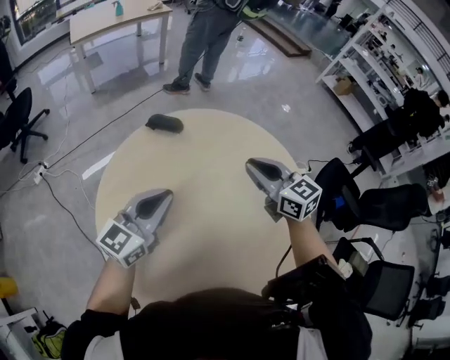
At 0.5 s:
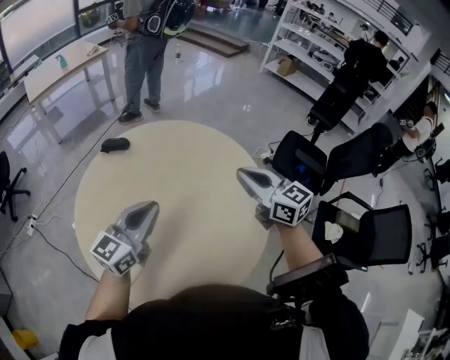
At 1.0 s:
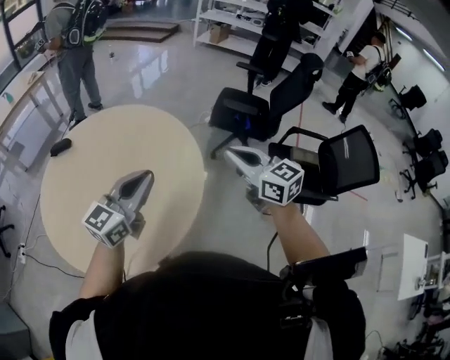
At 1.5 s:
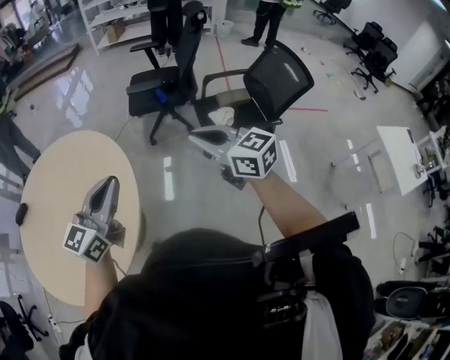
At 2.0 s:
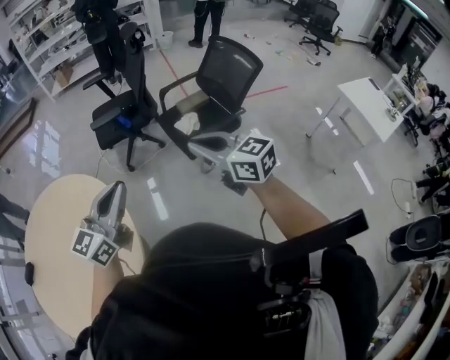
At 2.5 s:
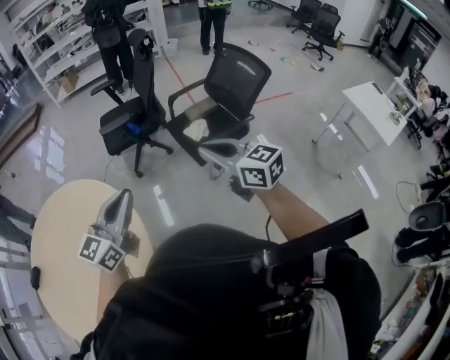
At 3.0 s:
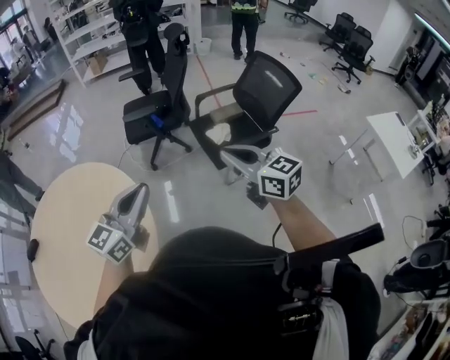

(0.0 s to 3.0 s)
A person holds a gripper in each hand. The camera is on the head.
0.0 s - 1.5 s: The two grippers travel together, some 70 cm. The right gripper swivels approximately 50 degrees; the left gripper changes its angle by about 40 degrees.
1.5 s - 3.0 s: The right gripper moves to the right, approximately 5 cm.

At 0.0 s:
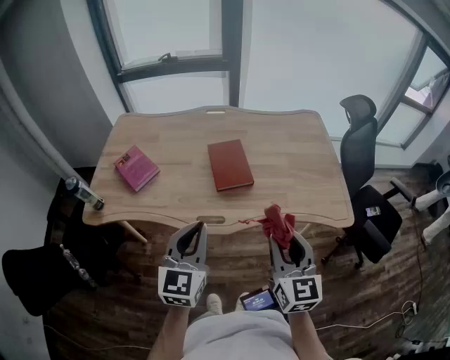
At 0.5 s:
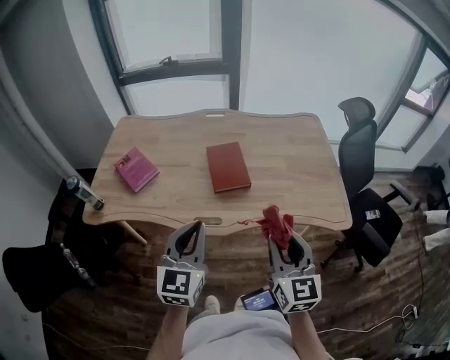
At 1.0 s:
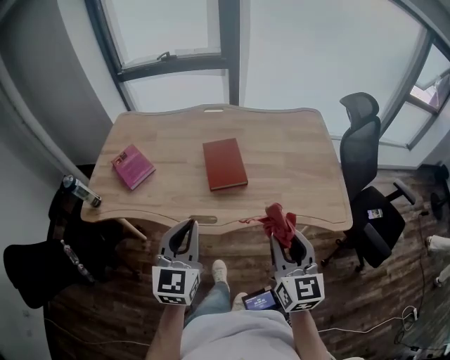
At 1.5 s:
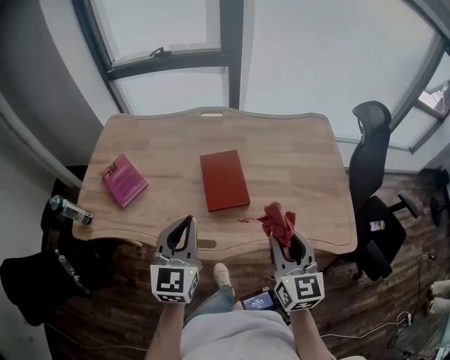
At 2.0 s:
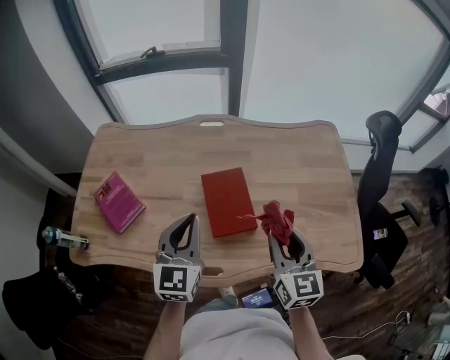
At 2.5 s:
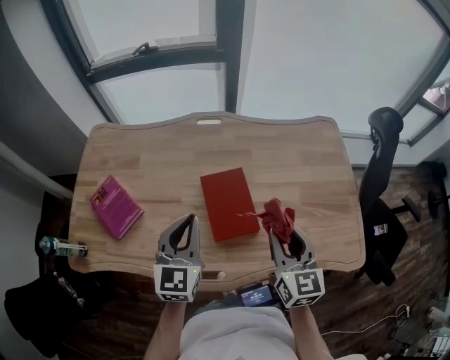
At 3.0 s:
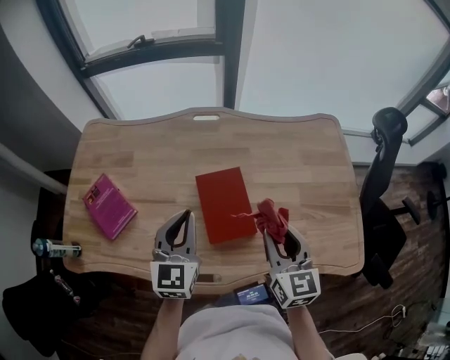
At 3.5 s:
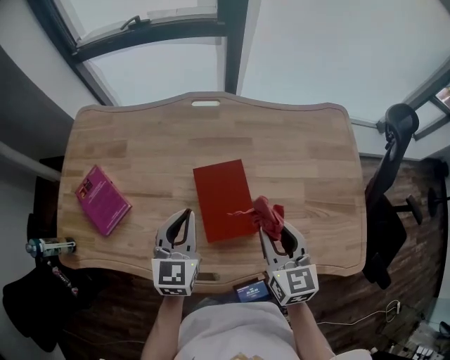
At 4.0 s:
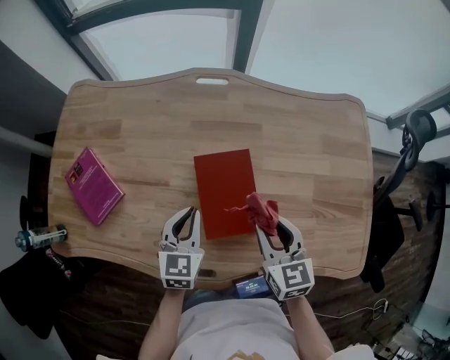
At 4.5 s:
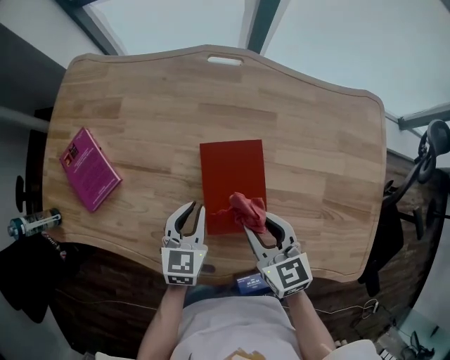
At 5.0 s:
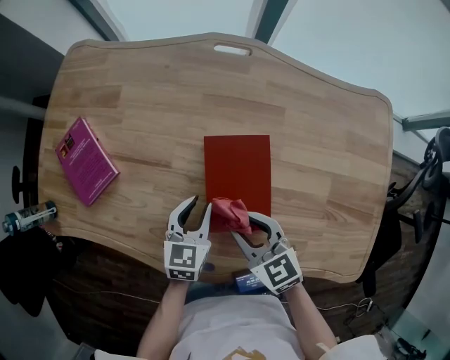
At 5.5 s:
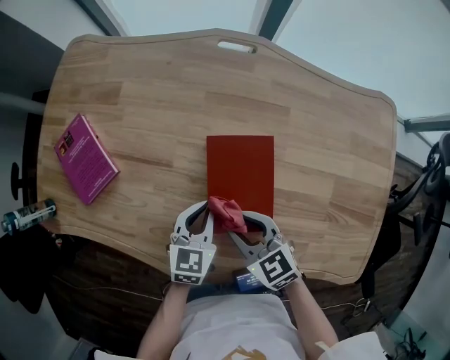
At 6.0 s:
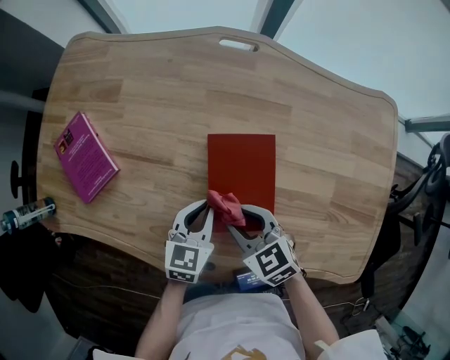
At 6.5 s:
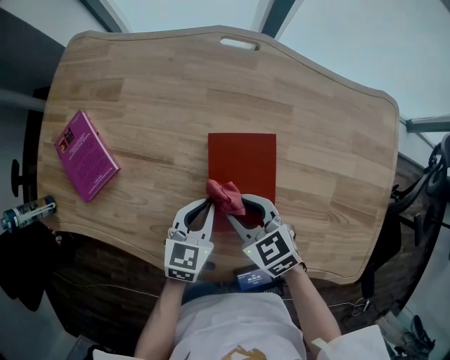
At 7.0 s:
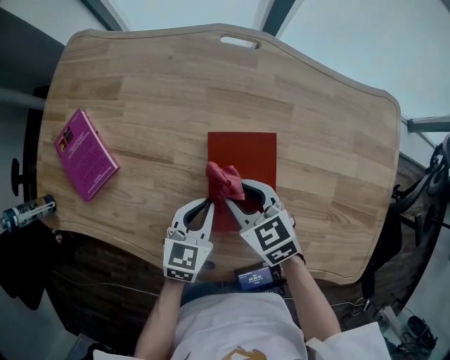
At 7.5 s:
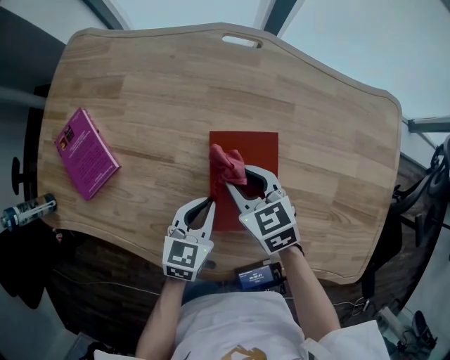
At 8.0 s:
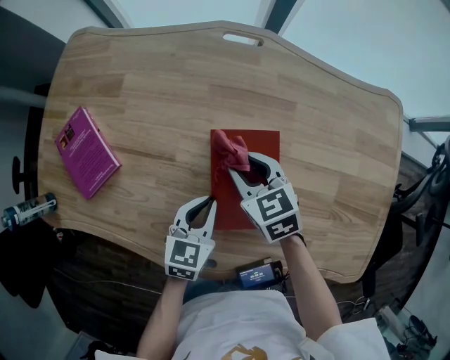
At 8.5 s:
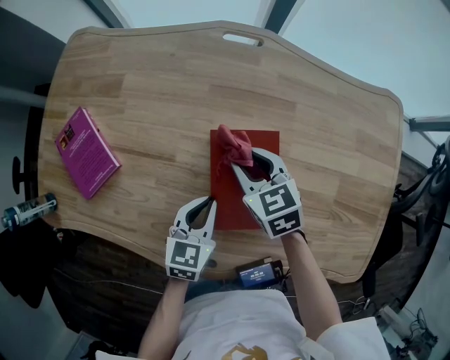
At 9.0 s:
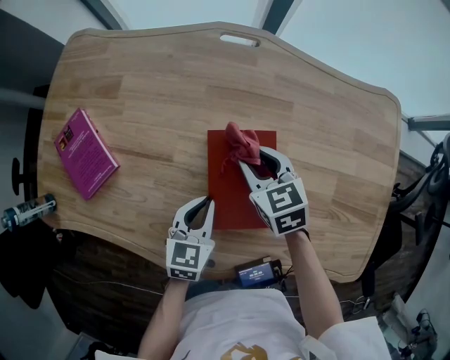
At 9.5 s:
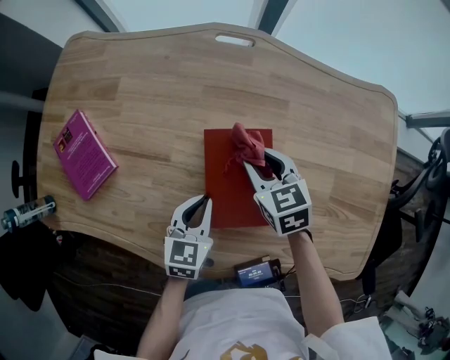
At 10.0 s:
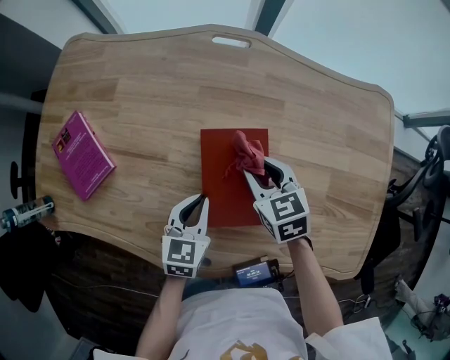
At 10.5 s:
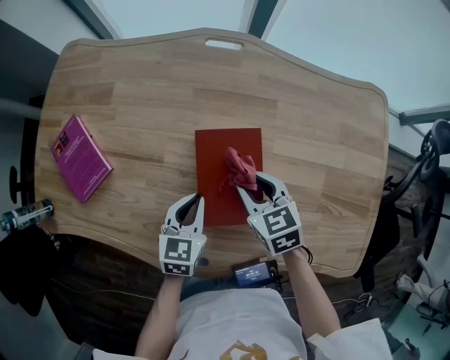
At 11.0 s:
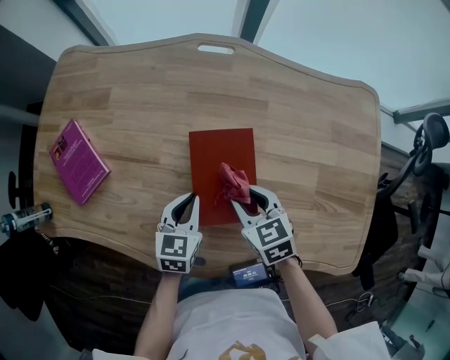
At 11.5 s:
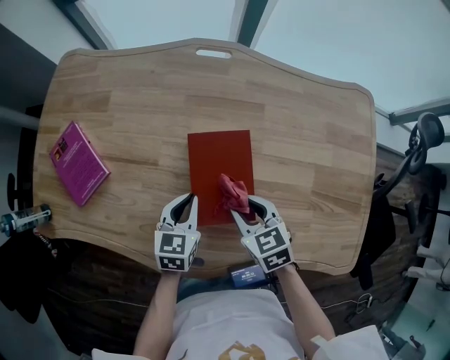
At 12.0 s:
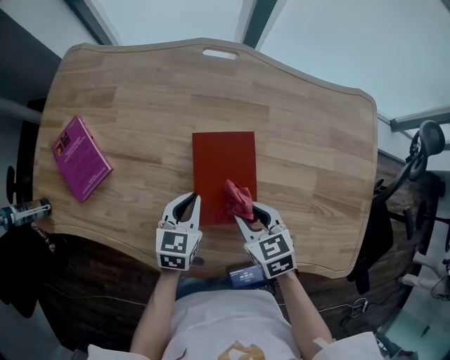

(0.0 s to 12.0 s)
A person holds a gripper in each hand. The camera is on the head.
0.0 s - 2.0 s: Both grippers move forward, some 25 cm.
2.0 s - 4.0 s: The two grippers go approximately 20 cm downward and forward. The right gripper changes its angle by about 20 degrees, while the left gripper changes its angle by about 20 degrees.
4.0 s - 6.0 s: The right gripper is displaced to the left and downward by approximately 15 cm, and swivels some 40 degrees. Meanwhile the left gripper shifts approximately 5 cm downward, and opens, then closes once more.
6.0 s - 8.0 s: The right gripper is displaced forward by about 10 cm.
8.0 s - 10.0 s: The right gripper heads to the right, covering some 5 cm.
10.0 s - 12.0 s: The right gripper shifts approximately 10 cm backward.

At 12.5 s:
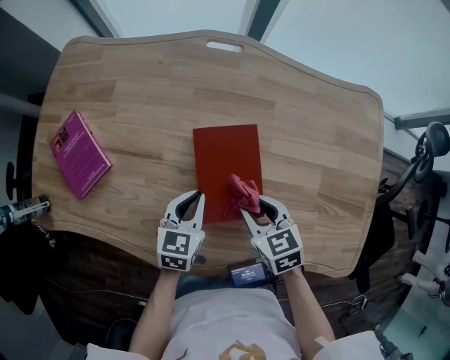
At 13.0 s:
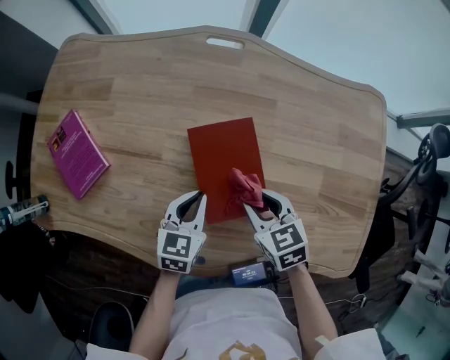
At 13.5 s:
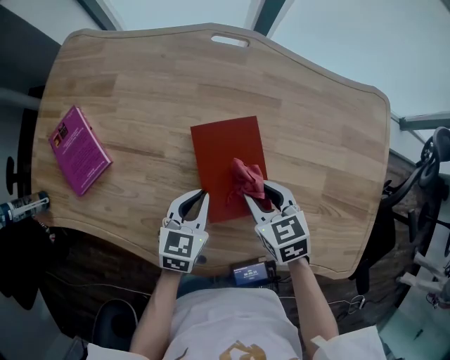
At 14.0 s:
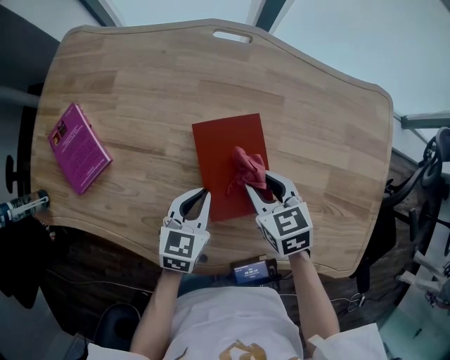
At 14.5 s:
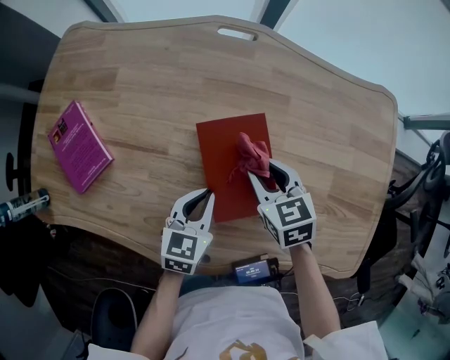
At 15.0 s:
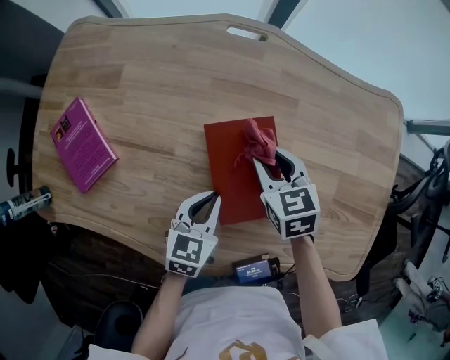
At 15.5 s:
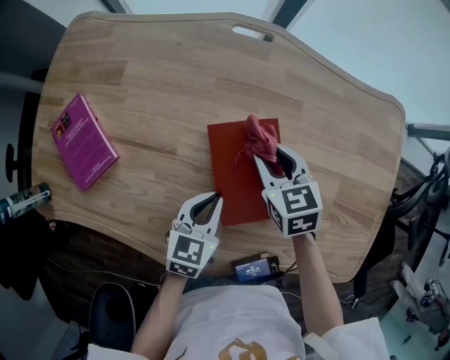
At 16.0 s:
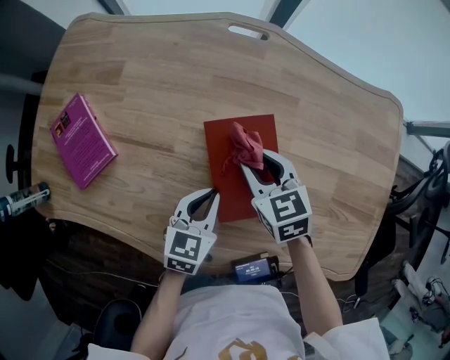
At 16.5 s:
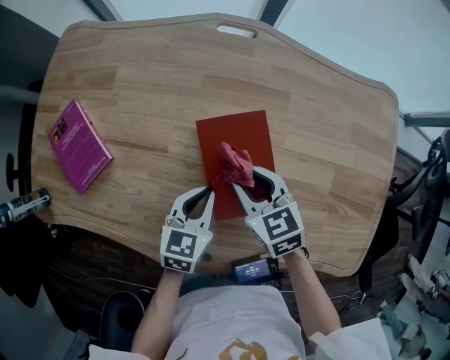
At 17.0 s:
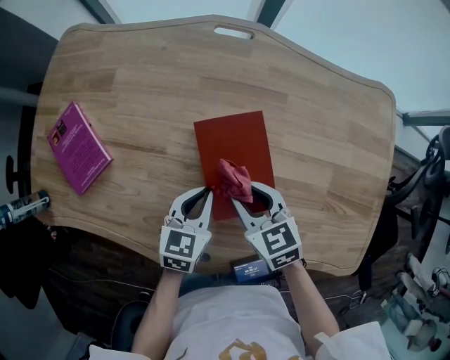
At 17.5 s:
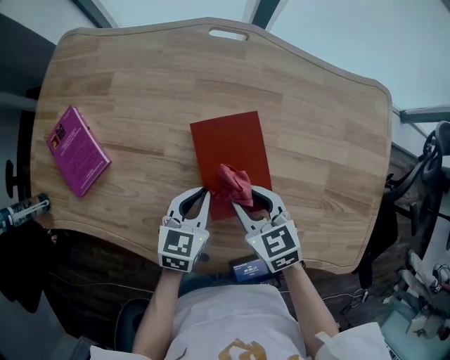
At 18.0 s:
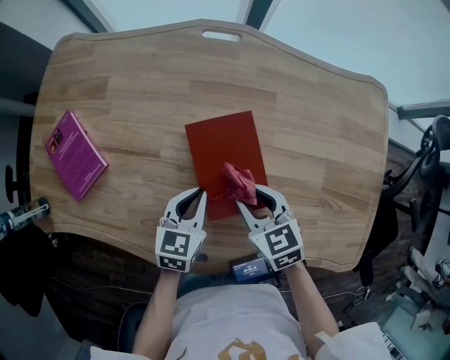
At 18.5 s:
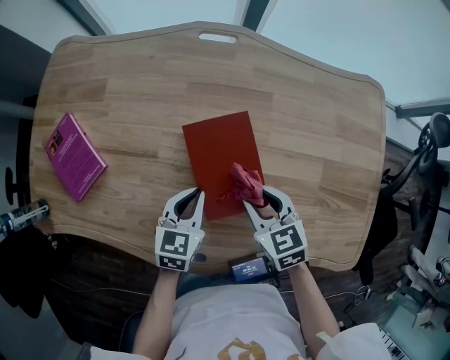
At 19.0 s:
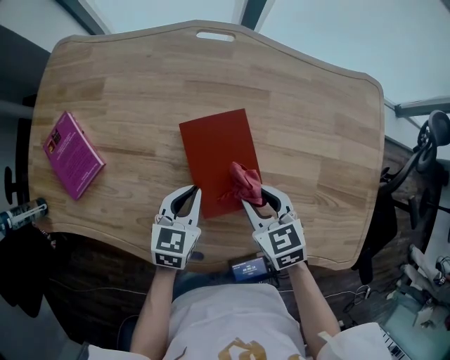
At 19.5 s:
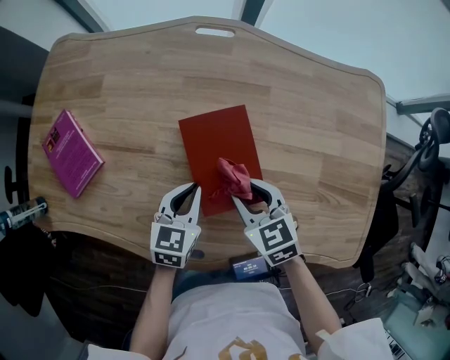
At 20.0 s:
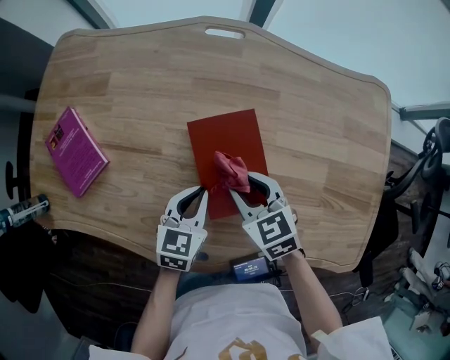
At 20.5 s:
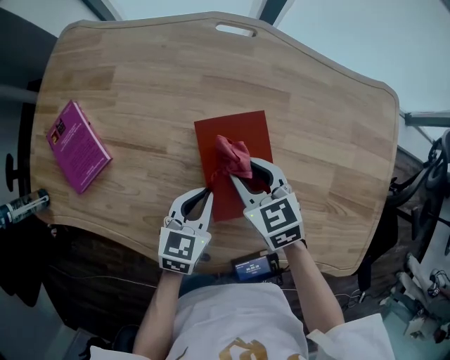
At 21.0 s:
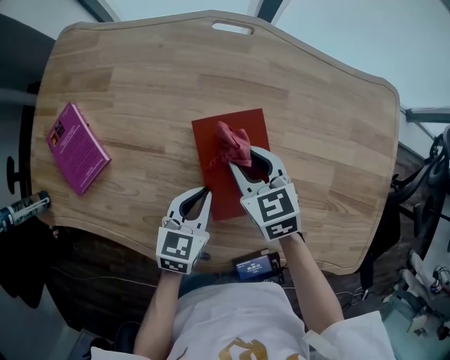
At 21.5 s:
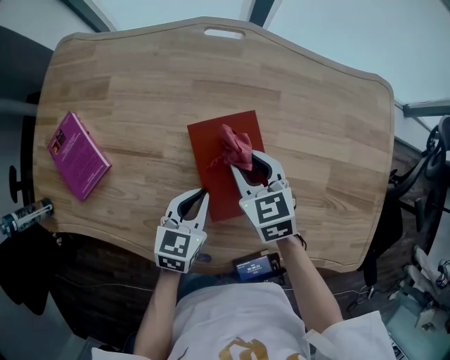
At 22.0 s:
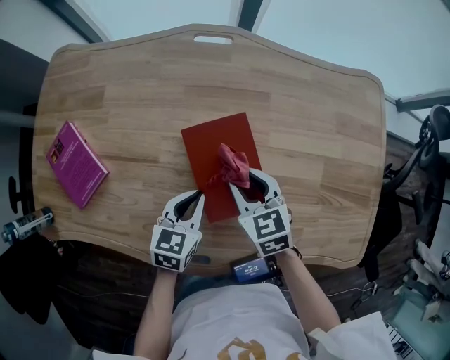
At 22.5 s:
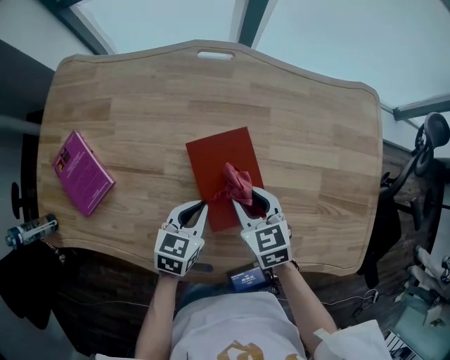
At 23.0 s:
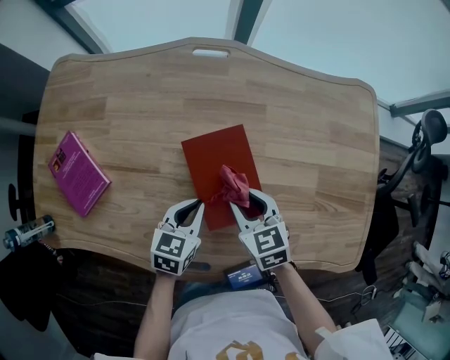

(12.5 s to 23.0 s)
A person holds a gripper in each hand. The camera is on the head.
12.5 s - 14.5 s: The right gripper shifts some 10 cm forward.
14.5 s - 16.5 s: The right gripper ends up about 5 cm from where it was.
16.5 s - 19.0 s: The right gripper travels to the right and backward by about 10 cm.
19.0 s - 21.0 s: The right gripper heads forward and to the left, covering some 10 cm.
21.0 s - 23.0 s: The right gripper goes roughly 5 cm backward.

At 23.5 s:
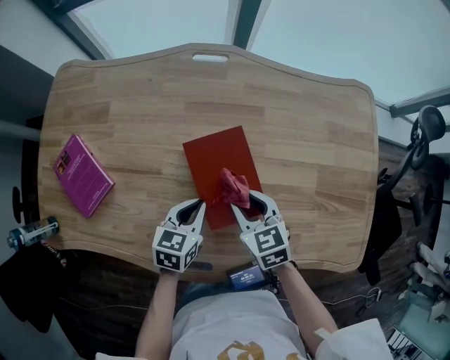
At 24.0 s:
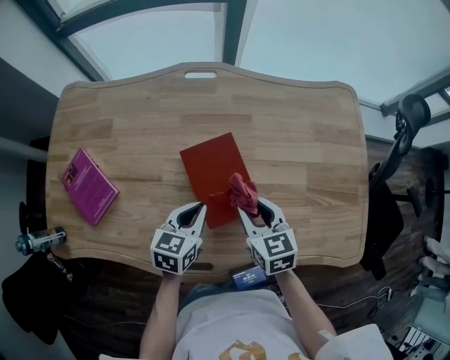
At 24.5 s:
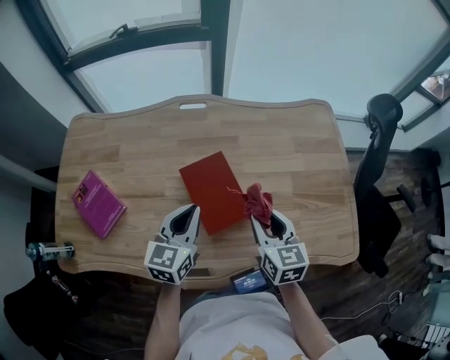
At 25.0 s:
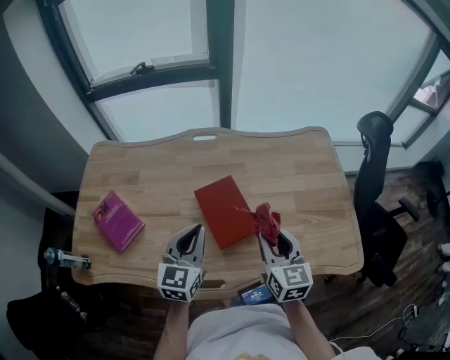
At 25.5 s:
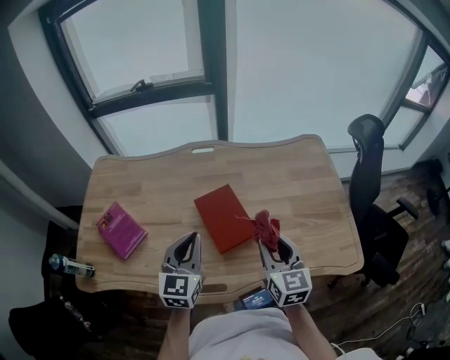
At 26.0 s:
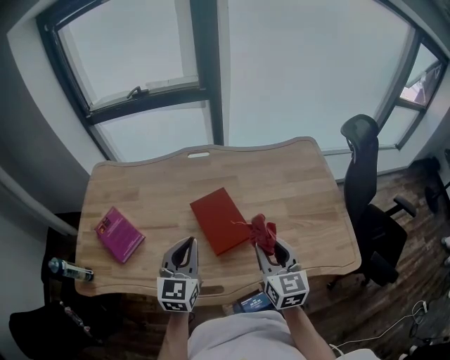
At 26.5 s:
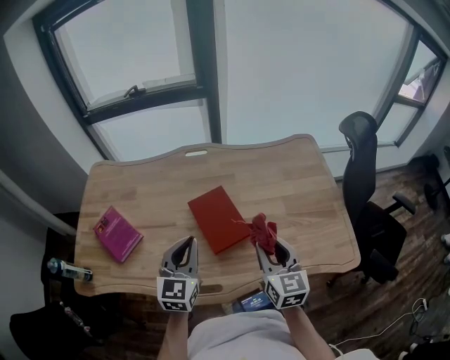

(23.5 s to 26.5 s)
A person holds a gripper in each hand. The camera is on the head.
23.5 s - 25.0 s: The left gripper goes some 20 cm upward, and changes its angle by roughly 30 degrees; the right gripper shifts approximately 20 cm upward, to the right and backward, and swivels some 40 degrees.
25.0 s - 26.5 s: The grippers stay close to where they were, moving slightly.
